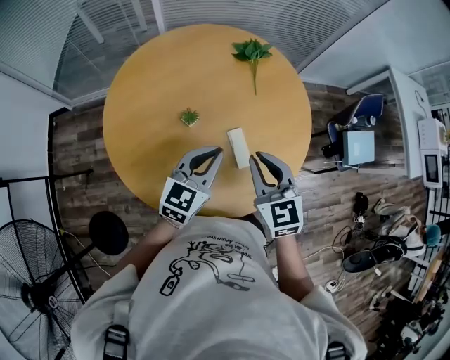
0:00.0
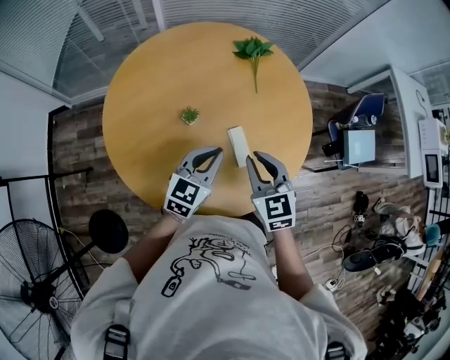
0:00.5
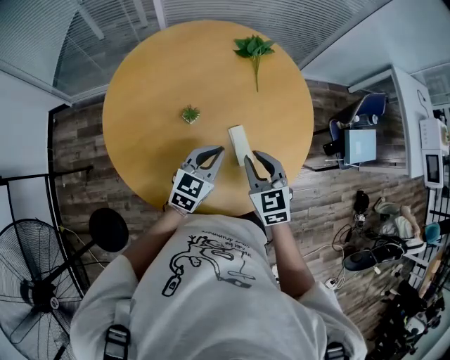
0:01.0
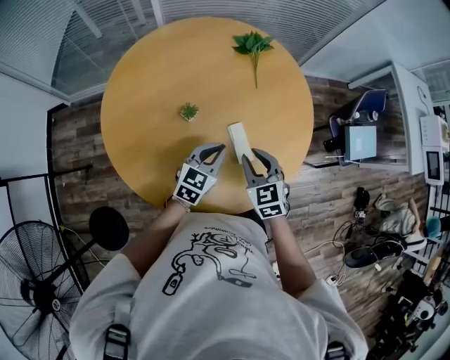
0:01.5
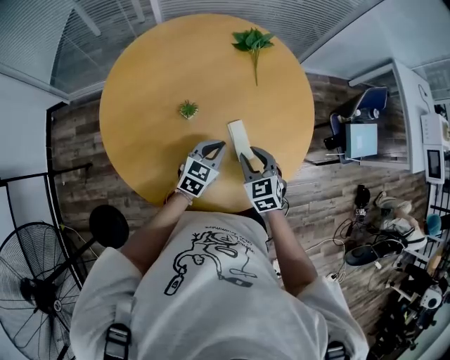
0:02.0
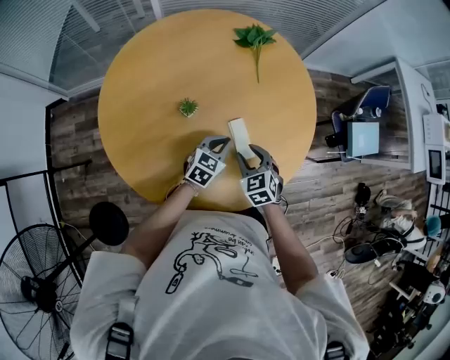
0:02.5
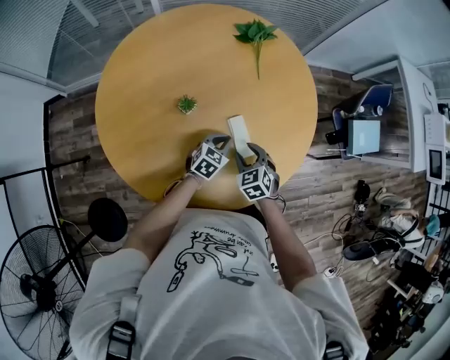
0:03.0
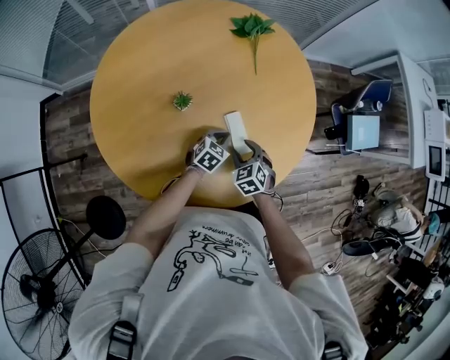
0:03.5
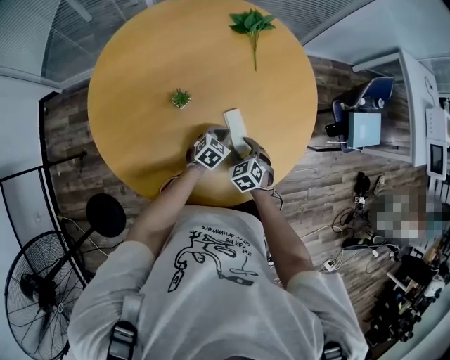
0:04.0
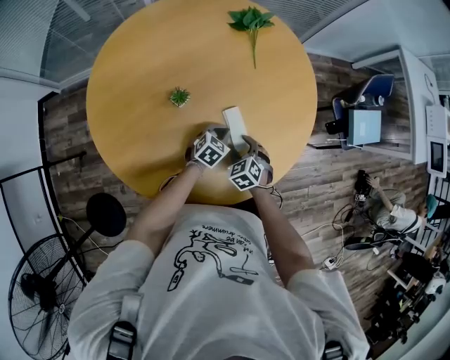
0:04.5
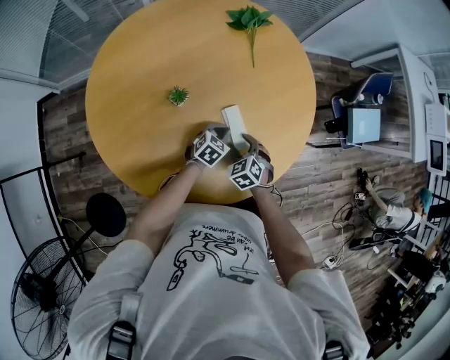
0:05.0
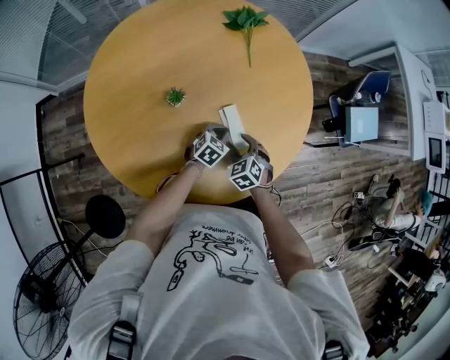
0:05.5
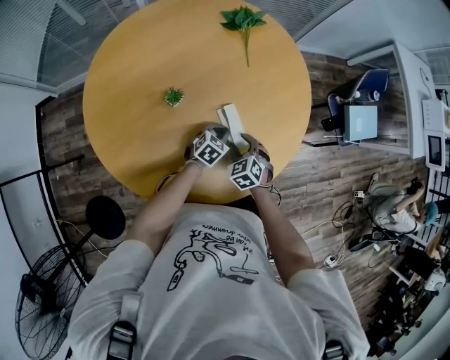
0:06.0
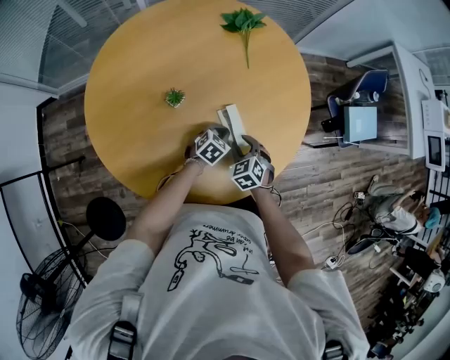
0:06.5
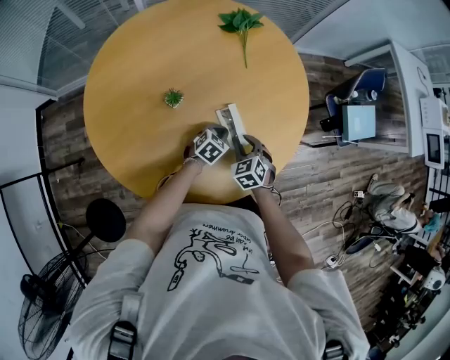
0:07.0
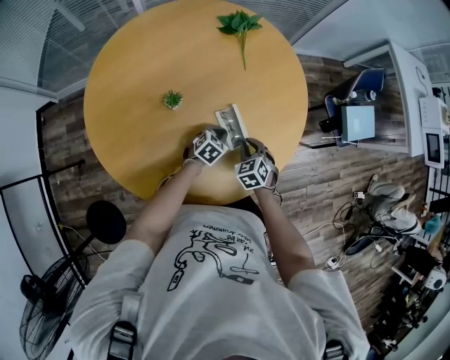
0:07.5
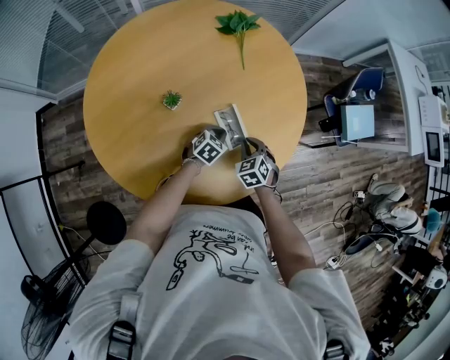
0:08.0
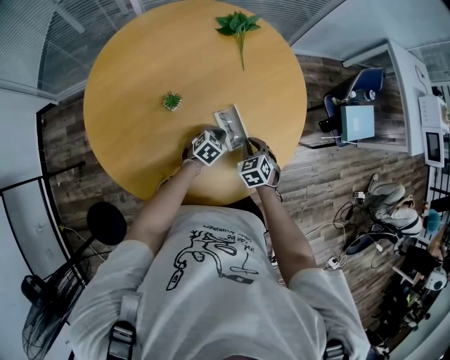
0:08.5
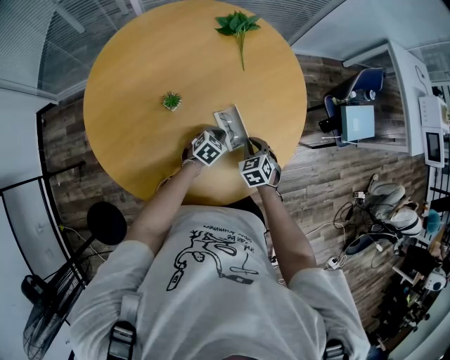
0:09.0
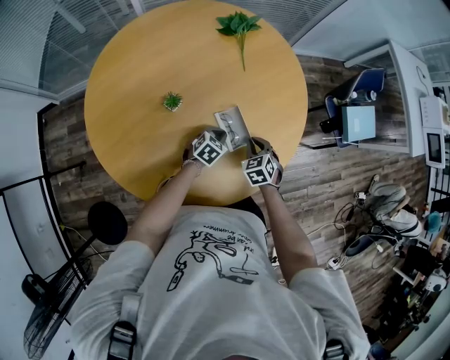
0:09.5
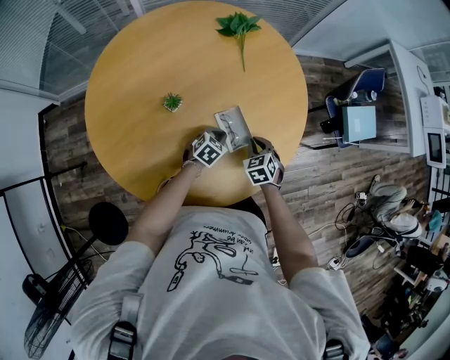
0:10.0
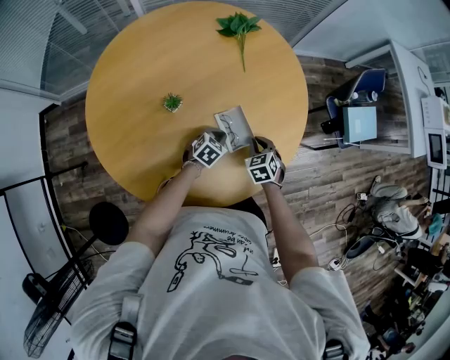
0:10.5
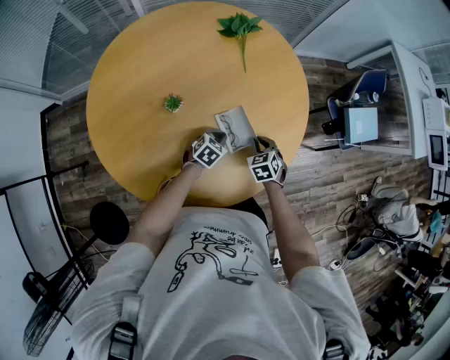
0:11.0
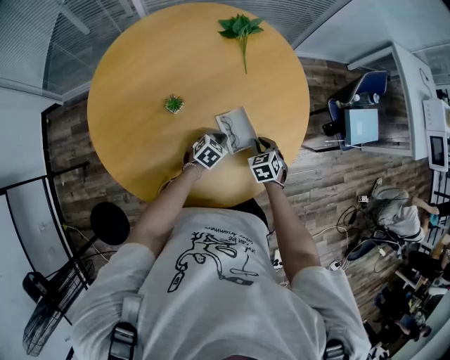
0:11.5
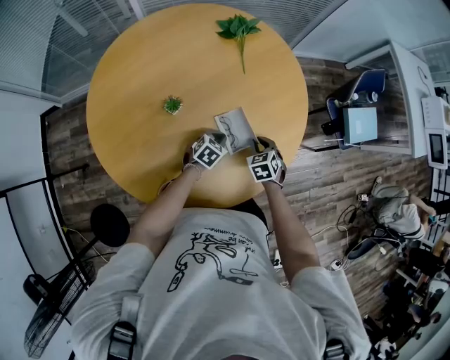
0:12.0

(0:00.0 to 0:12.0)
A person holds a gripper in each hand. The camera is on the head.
0:00.0 - 0:02.0: The grippers both shift downward by approximately 15 cm.
0:02.0 - 0:04.0: The grippers both shift downward by about 15 cm. The right gripper opens up.
0:04.0 - 0:06.0: The grippers move only a little.
0:06.0 - 0:08.0: The right gripper closes its fingers.
0:08.0 - 0:12.0: There are only small adjustments of the grippers.

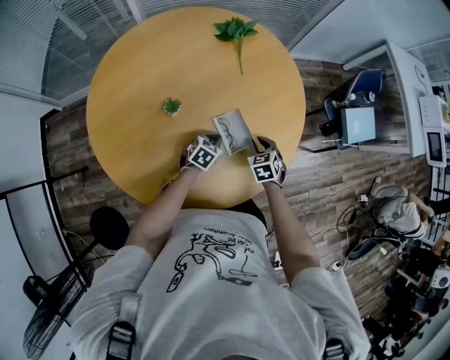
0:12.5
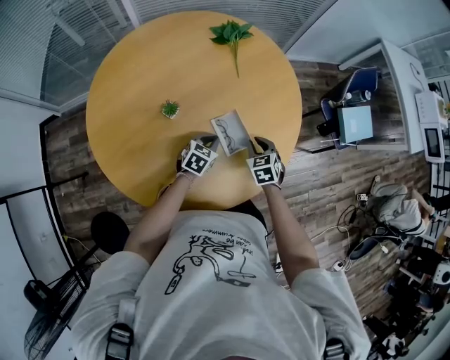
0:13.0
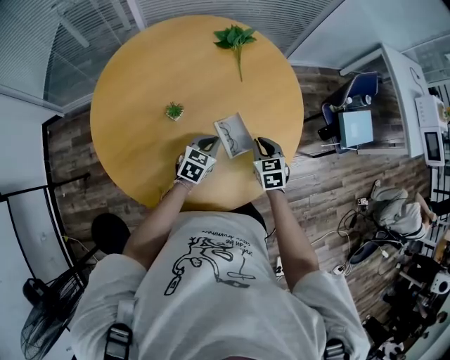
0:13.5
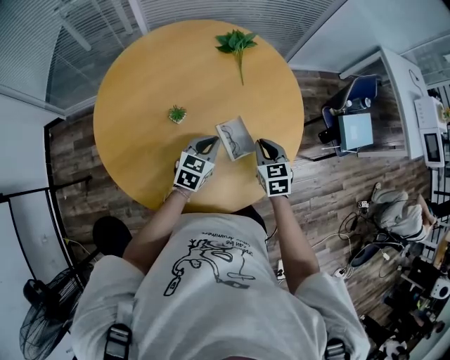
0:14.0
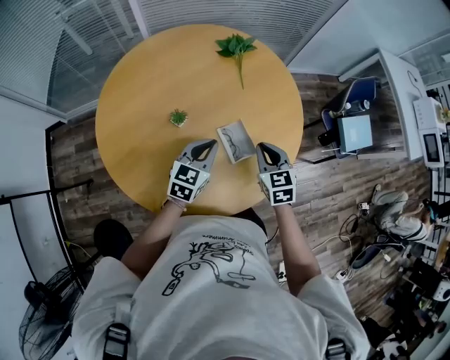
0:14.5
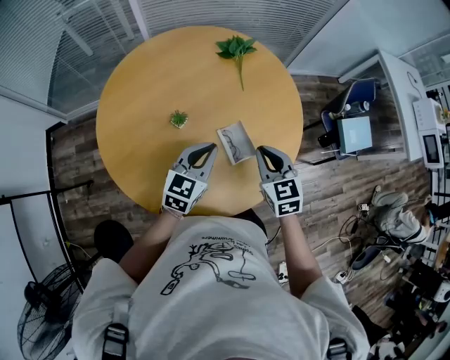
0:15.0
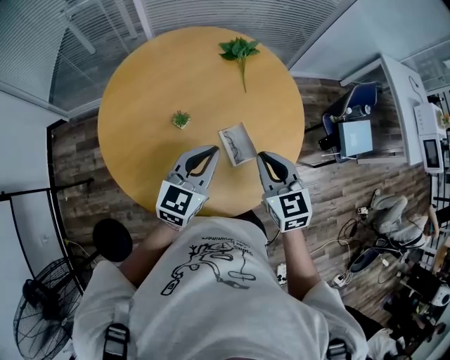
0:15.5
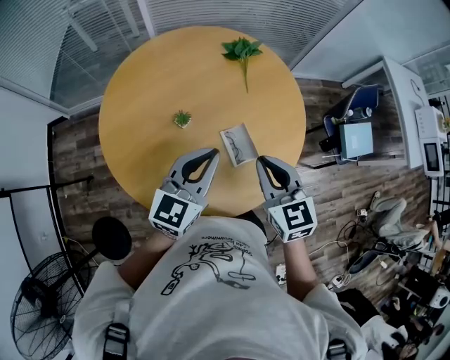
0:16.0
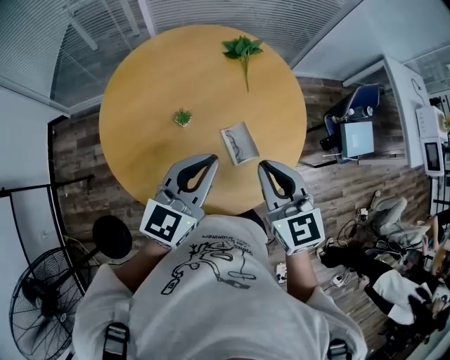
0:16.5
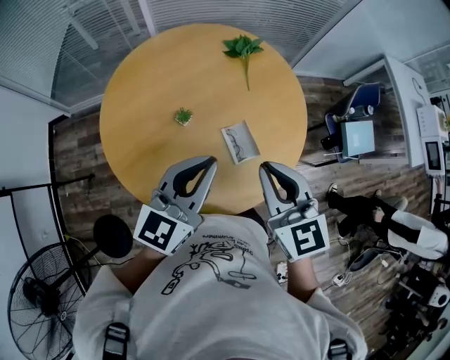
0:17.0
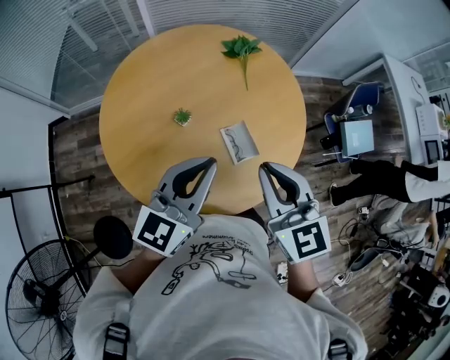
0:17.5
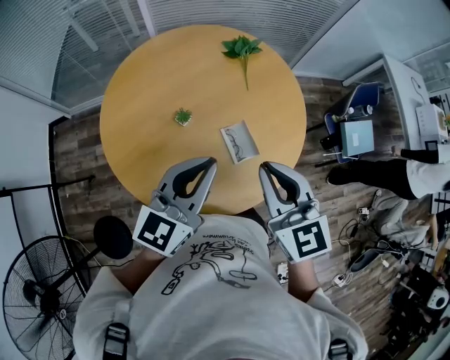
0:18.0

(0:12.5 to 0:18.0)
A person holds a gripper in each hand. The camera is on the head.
0:12.5 - 0:14.5: Both grippers move upward, some 20 cm. The left gripper changes its angle by approximately 30 degrees; the right gripper turns by roughly 20 degrees.
0:14.5 - 0:16.0: Both grippers move upward, about 15 cm.
0:16.0 - 0:18.0: Both grippers move upward, about 5 cm.

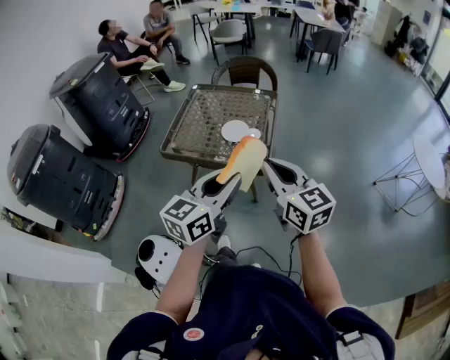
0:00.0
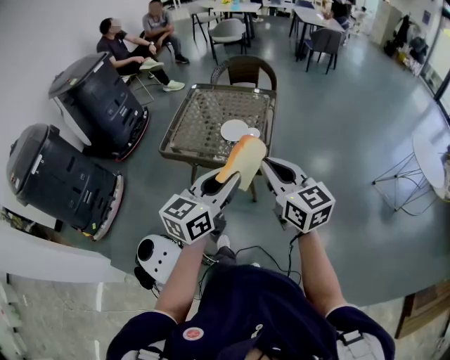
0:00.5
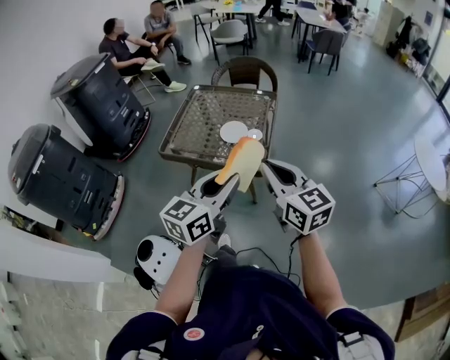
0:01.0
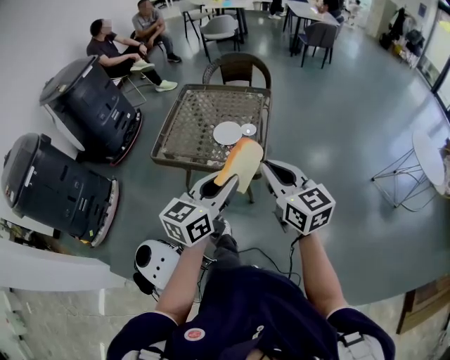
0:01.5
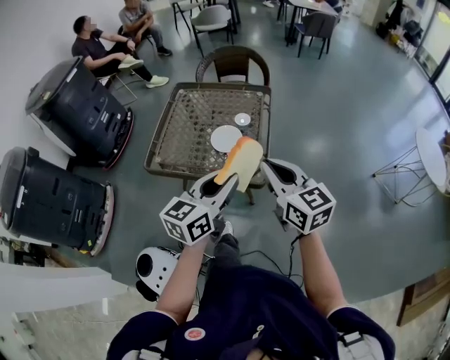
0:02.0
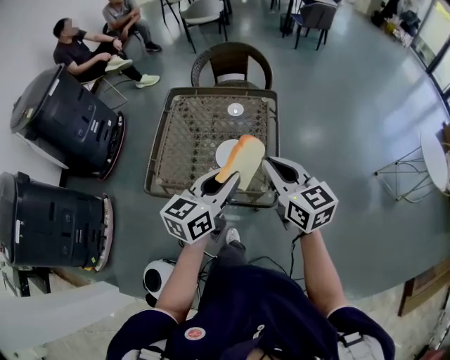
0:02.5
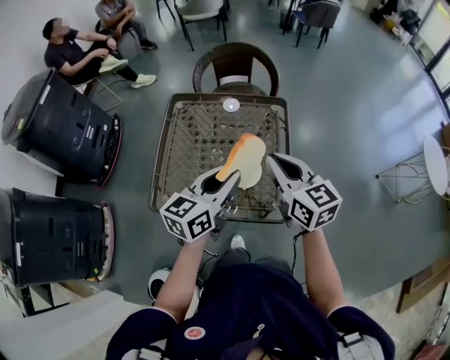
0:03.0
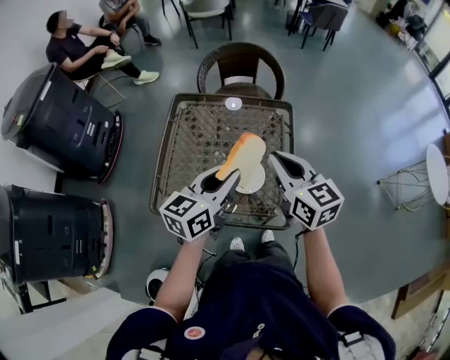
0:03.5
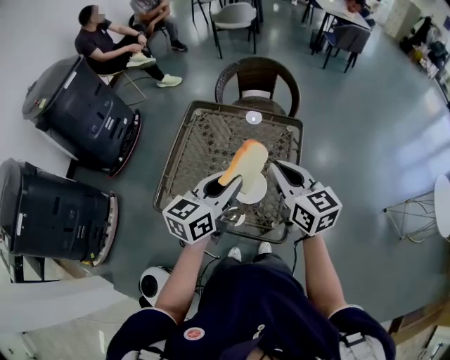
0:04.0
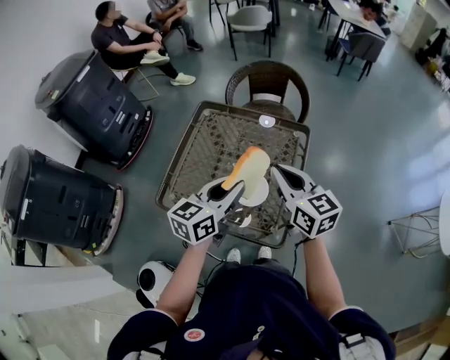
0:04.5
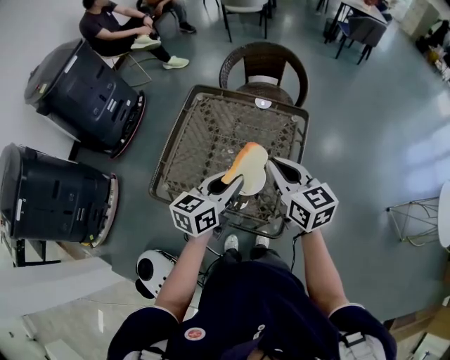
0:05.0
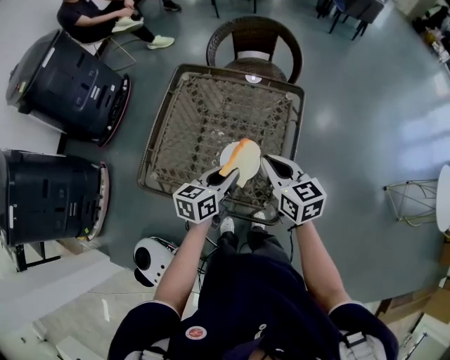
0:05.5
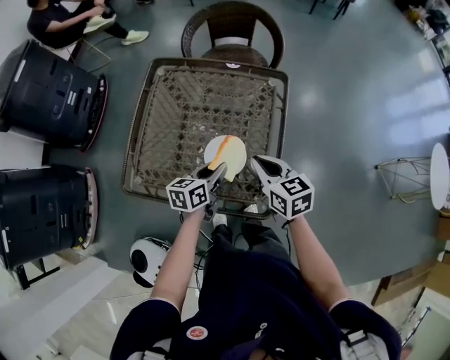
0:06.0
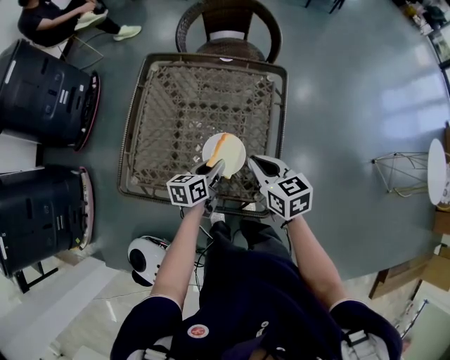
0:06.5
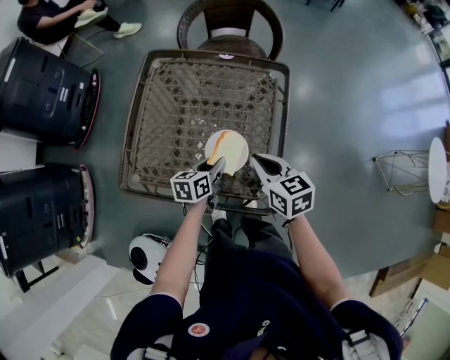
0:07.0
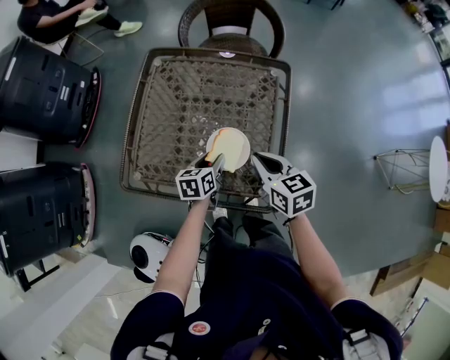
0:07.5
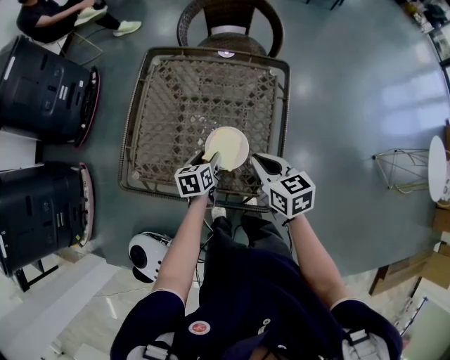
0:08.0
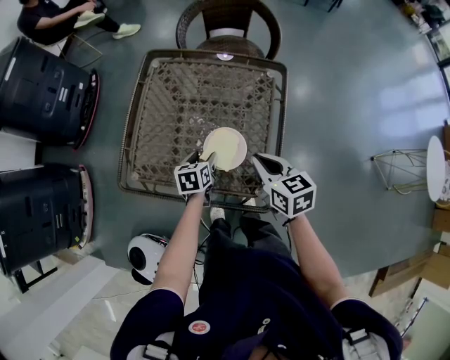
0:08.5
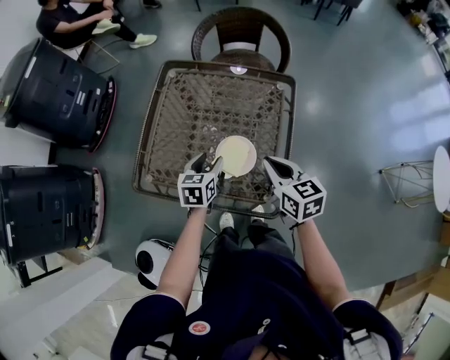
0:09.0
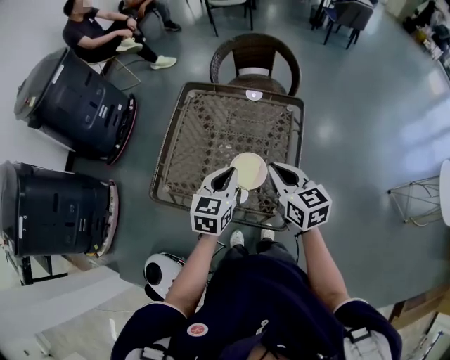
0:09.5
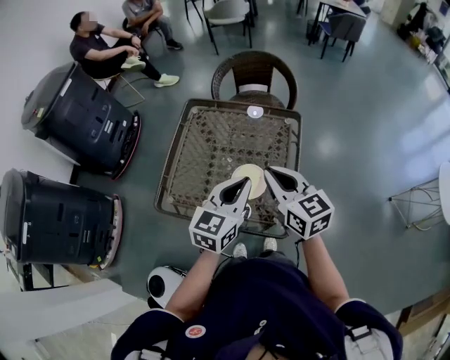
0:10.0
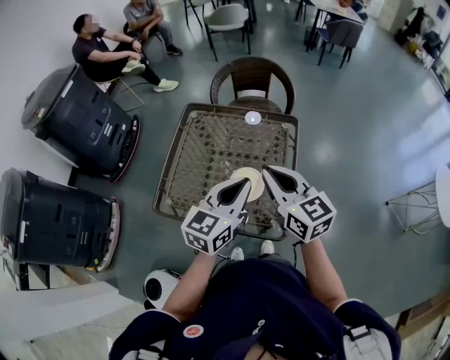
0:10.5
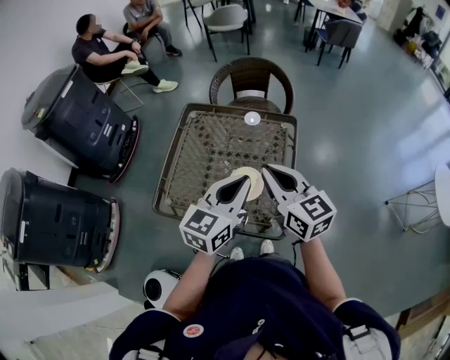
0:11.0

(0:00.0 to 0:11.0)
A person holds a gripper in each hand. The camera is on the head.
0:00.0 - 0:02.0: The right gripper shifts roughly 15 cm forward. The left gripper moves forward and downward, about 15 cm.
0:02.0 - 0:03.5: Both grippers move forward and to the left, roughly 25 cm.
0:03.5 - 0:05.5: The two grippers go roughly 15 cm downward.
0:05.5 - 0:07.5: The left gripper travels downward by some 15 cm. Meanwhile the right gripper heads downward, covering approximately 5 cm.
0:07.5 - 0:09.0: The left gripper shifts roughly 5 cm upward.
0:09.0 - 0:11.0: The right gripper heads upward, covering roughly 15 cm, and turns by about 20 degrees, while the left gripper goes roughly 25 cm upward, tips its fingers upward by some 30 degrees, and closes.
